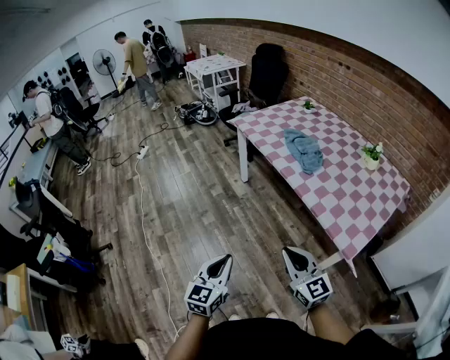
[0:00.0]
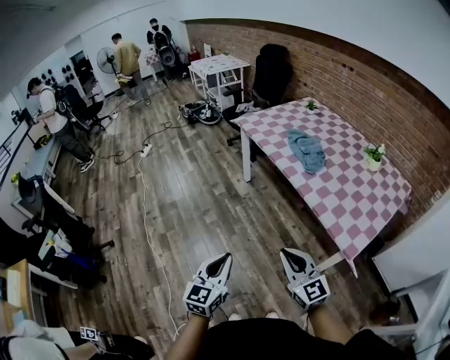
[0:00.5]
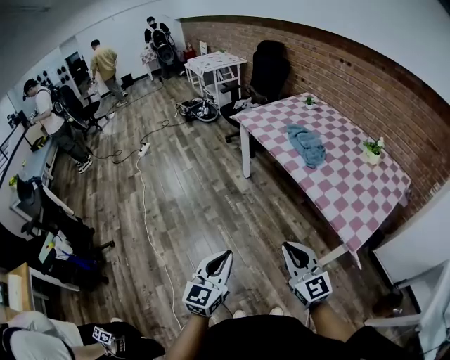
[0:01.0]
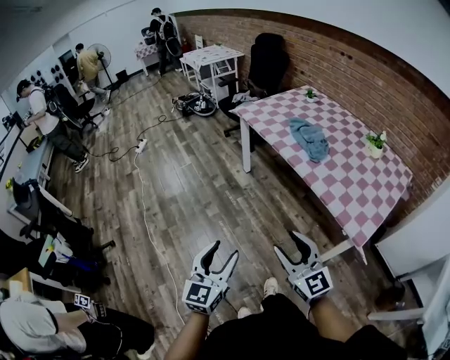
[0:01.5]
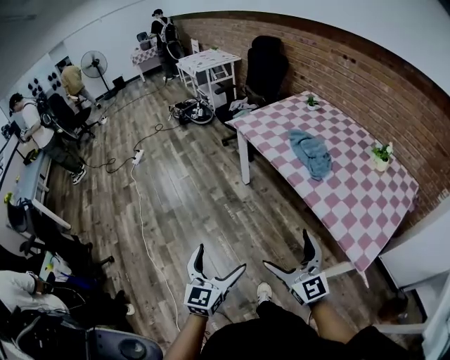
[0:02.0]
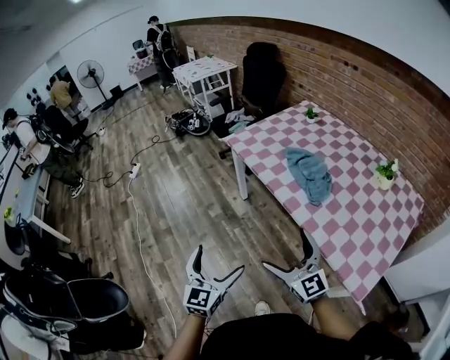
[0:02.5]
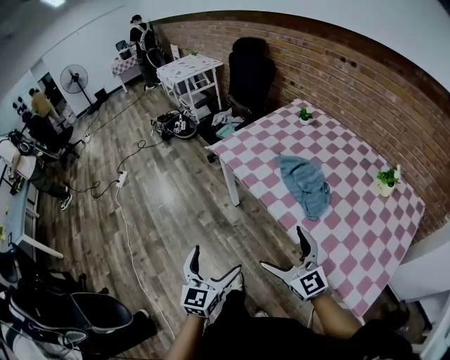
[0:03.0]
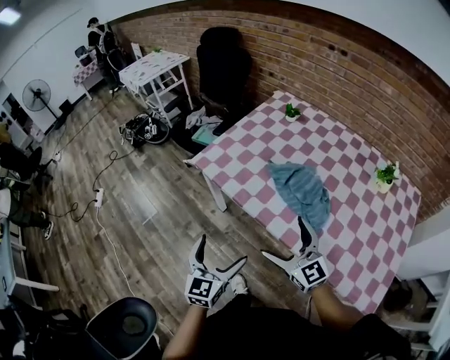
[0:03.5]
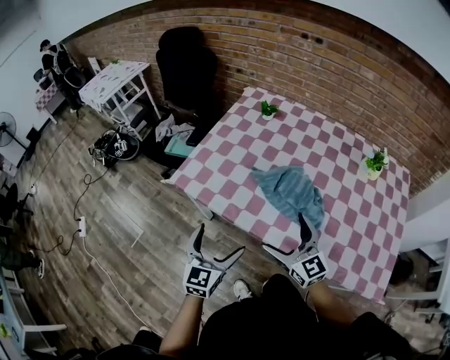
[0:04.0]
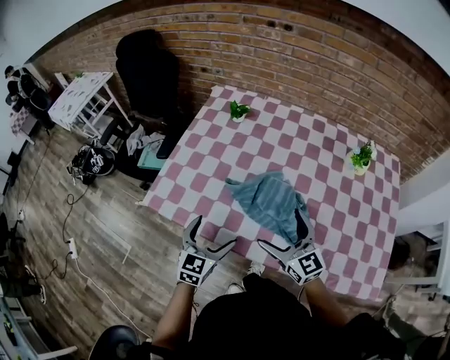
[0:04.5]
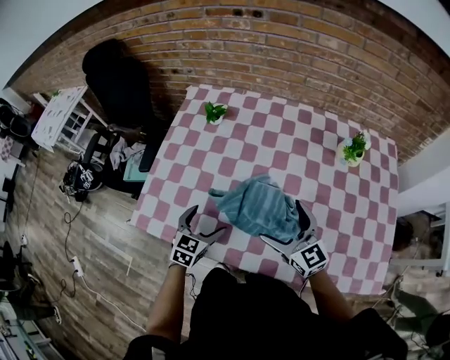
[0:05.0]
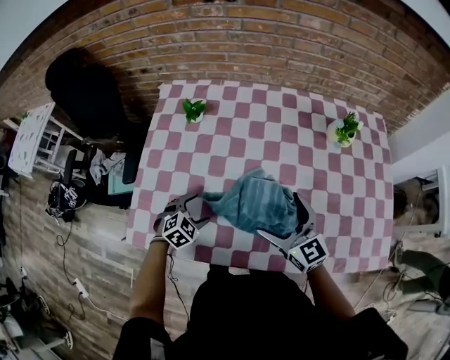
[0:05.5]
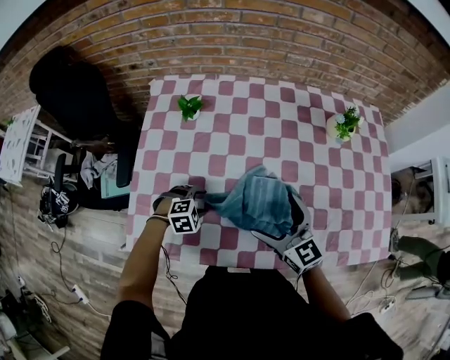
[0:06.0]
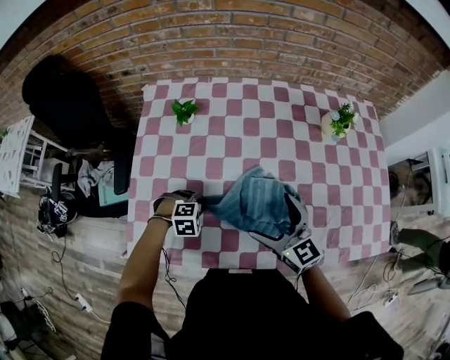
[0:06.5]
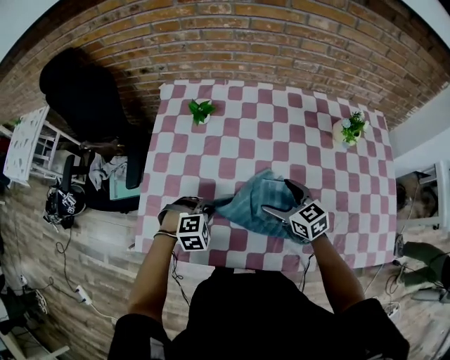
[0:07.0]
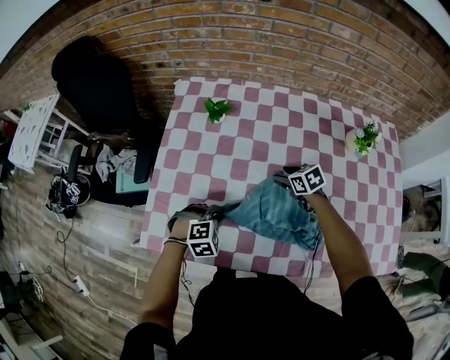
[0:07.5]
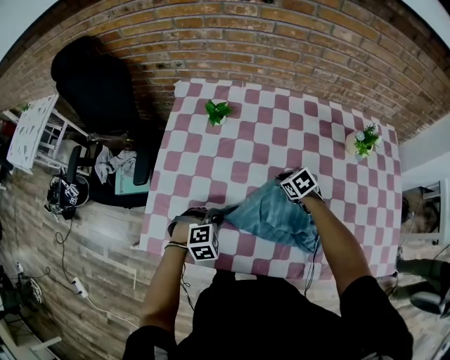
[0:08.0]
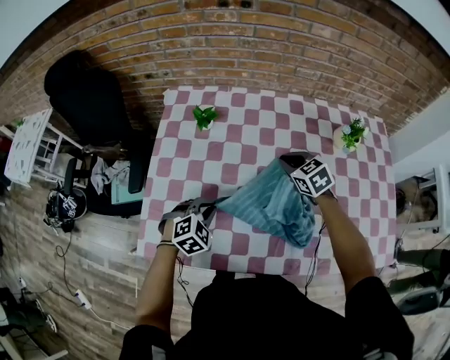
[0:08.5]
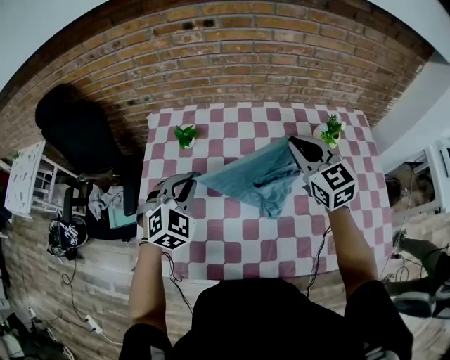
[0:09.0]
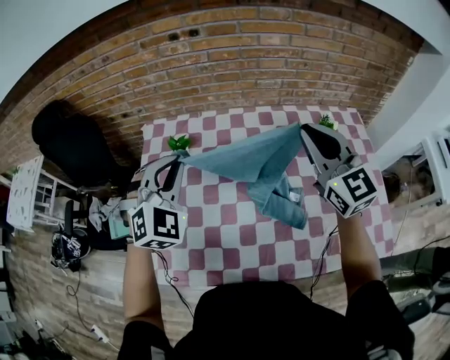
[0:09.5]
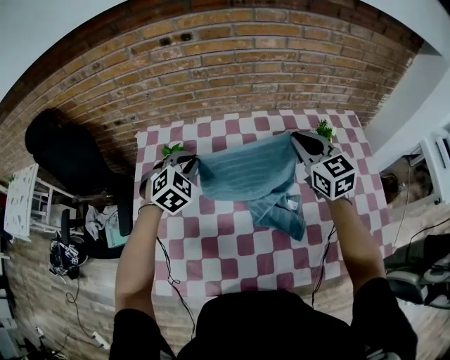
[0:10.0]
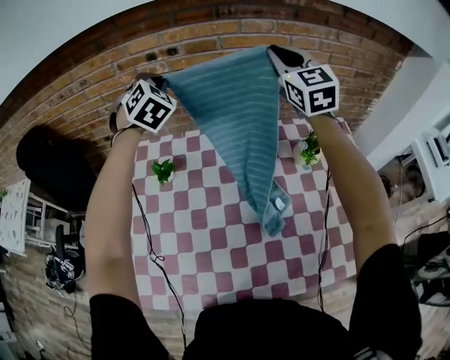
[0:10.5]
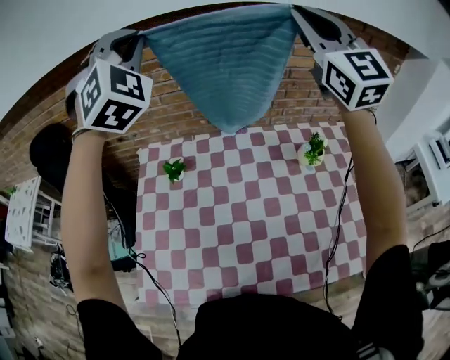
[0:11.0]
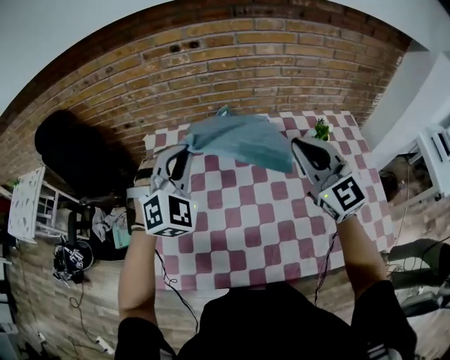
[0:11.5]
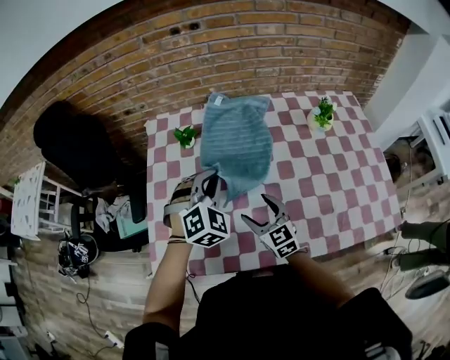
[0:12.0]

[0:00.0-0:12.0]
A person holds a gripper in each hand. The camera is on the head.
0:00.0 to 0:02.0: The grippers both shift forward by some 10 cm. The right gripper opens up. Meanwhile the left gripper opens up.
0:02.0 to 0:04.0: Both grippers are carried approximately 50 cm. The left gripper rotates about 30 degrees, while the right gripper swivels approximately 30 degrees.
0:04.0 to 0:06.0: The left gripper shifts by roughly 40 cm, tips its fingers downward by approximately 60 degrees, and closes. The right gripper ends up roughly 20 cm from where it was, and turns by approximately 20 degrees.
0:06.0 to 0:08.0: The right gripper heads downward and forward, covering about 25 cm, angles its fingers downward, by some 50 degrees, and closes its fingers; the left gripper closes its fingers.
0:08.0 to 0:10.0: The right gripper heads upward and to the right, covering some 35 cm, and tips its fingers upward by roughly 50 degrees, while the left gripper is displaced forward and upward by roughly 35 cm, and swivels some 20 degrees.
0:10.0 to 0:12.0: The right gripper shifts about 30 cm to the left and backward, reaches some 35 cm upward, then returns, and opens up, while the left gripper shifts approximately 15 cm backward, and travels upward and back again, approximately 40 cm each way.

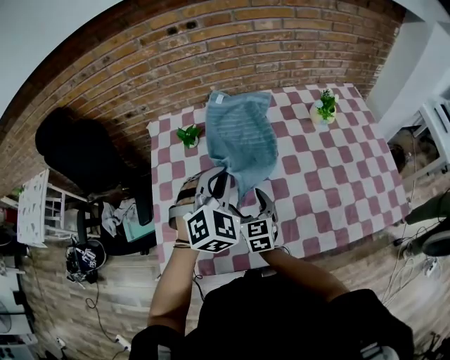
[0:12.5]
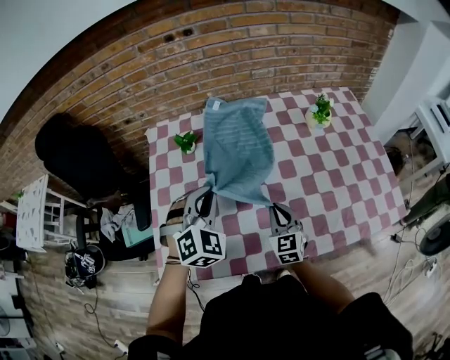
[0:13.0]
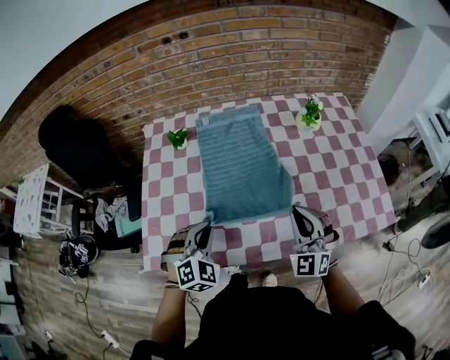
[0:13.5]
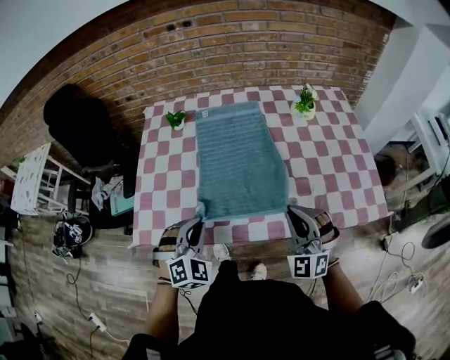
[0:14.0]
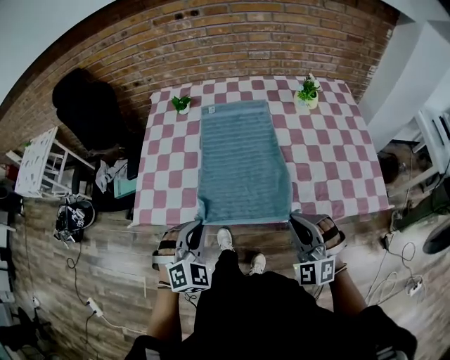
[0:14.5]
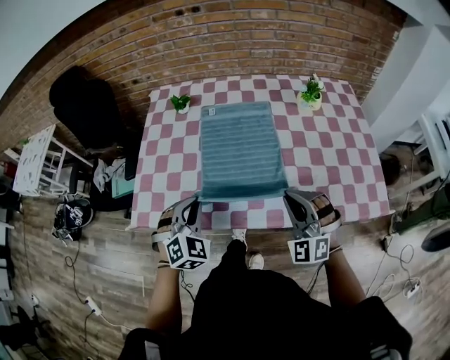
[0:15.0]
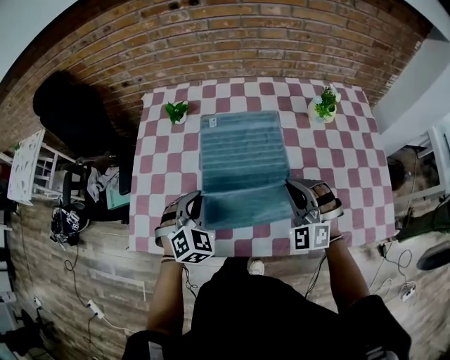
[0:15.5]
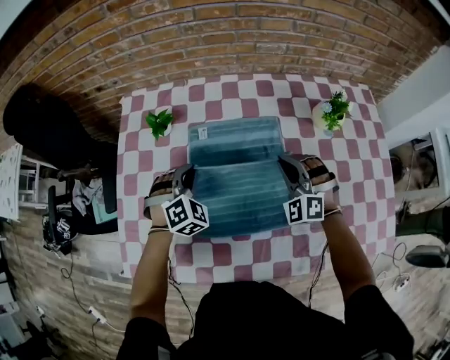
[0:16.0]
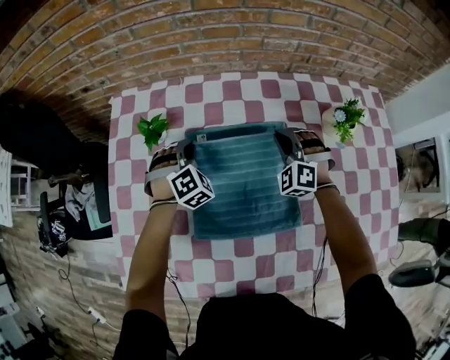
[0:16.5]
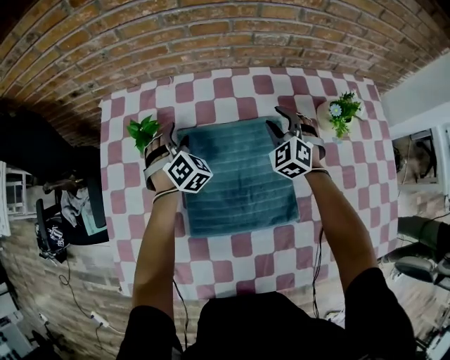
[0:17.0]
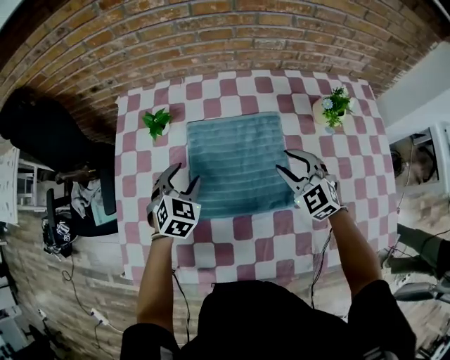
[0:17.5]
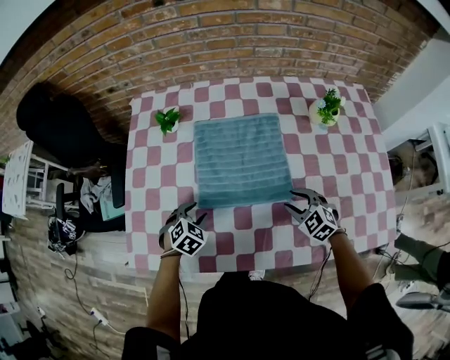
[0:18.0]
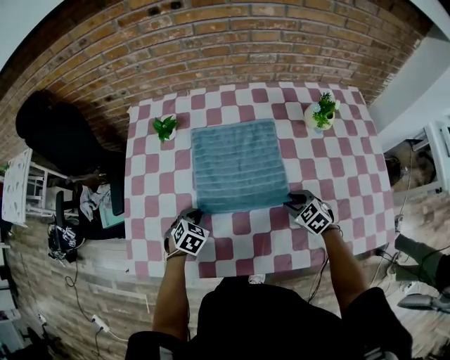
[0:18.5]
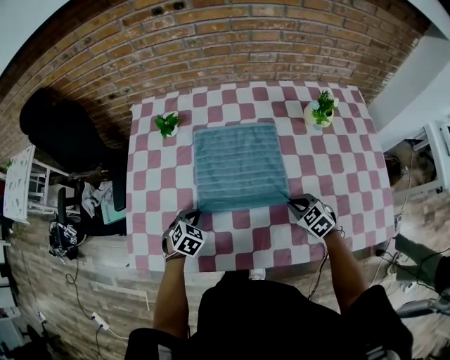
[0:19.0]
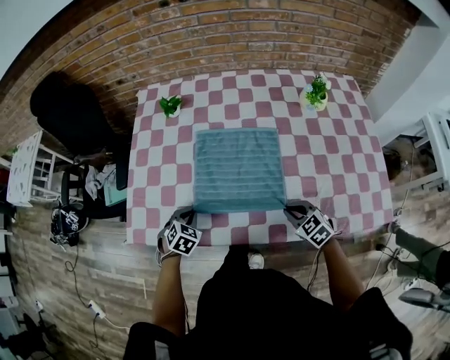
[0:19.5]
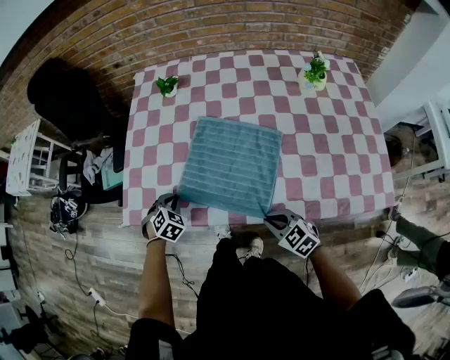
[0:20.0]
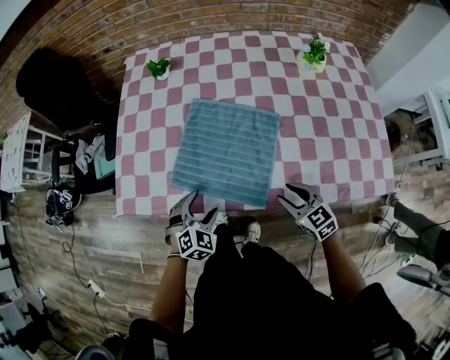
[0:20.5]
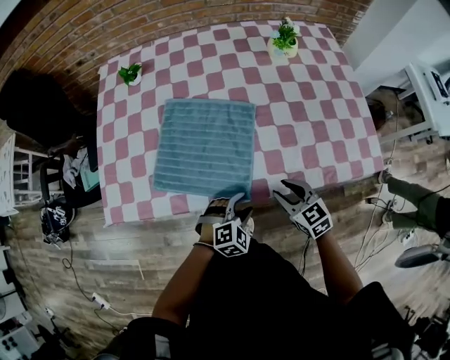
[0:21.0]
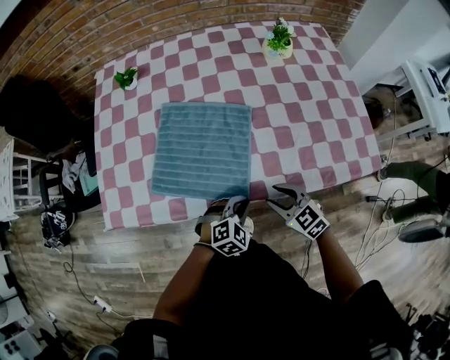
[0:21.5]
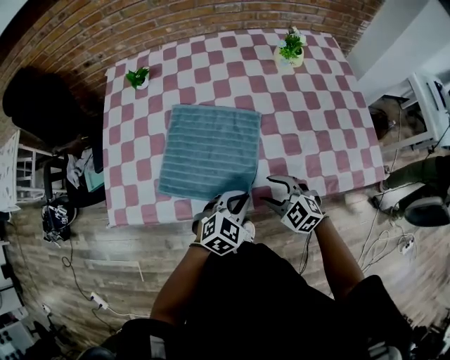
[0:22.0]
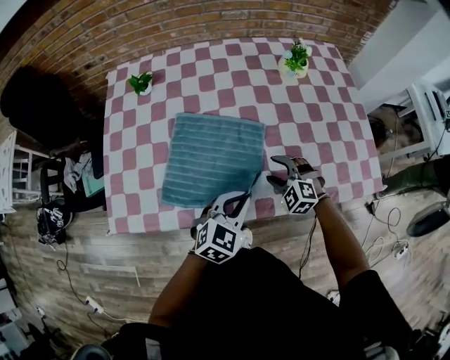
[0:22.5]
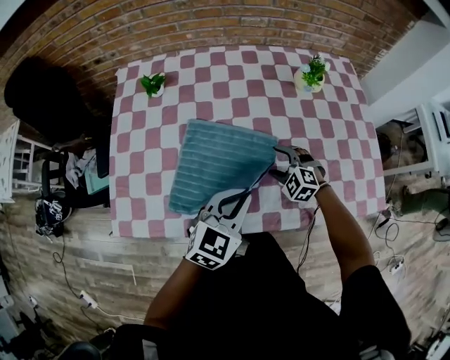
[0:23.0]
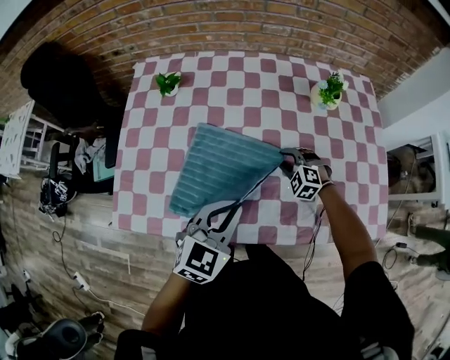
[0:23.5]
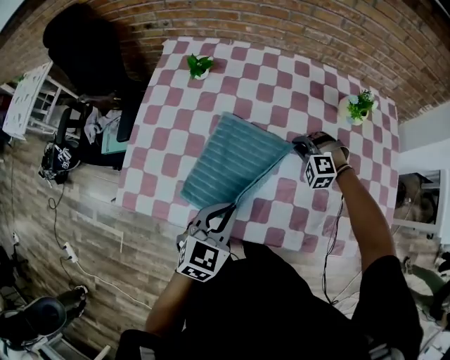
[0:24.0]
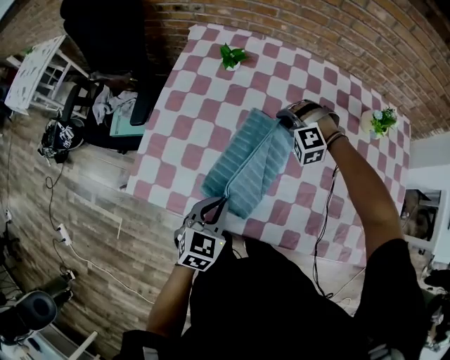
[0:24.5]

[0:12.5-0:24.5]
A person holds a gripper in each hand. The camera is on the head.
0:12.5 to 0:14.5: The left gripper is displaced backward by some 30 cm, while the right gripper shifts approximately 40 cm backward, to the right and upward, rolls counterclockwise, seen from behind, by some 60 degrees, and closes.
0:14.5 to 0:16.5: Both grippers are carried forward, roughly 60 cm.
0:16.5 to 0:18.5: The grippers both shift backward by approximately 25 cm. The right gripper rolls clockwise, seen from behind, by about 40 degrees, while the left gripper changes its angle by about 40 degrees, and opens, then closes once more.
0:18.5 to 0:20.5: The left gripper travels backward by approximately 20 cm, swivels about 20 degrees, and opens up, while the right gripper shifts about 20 cm backward and to the left, and changes its angle by about 20 degrees.
0:20.5 to 0:22.5: The right gripper goes approximately 10 cm forward, and twists about 40 degrees counterclockwise, seen from behind. Meanwhile the left gripper moves to the right and upward, approximately 20 cm, swivels some 30 degrees, and closes.
0:22.5 to 0:24.5: The right gripper shifts approximately 30 cm forward and to the left, rolls counterclockwise, seen from behind, by roughly 50 degrees, and closes its fingers. Meanwhile the left gripper heads to the left, covering some 20 cm, and swivels some 40 degrees.

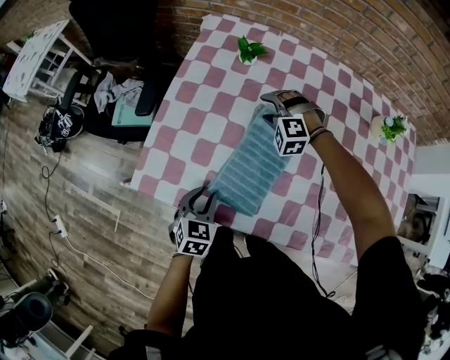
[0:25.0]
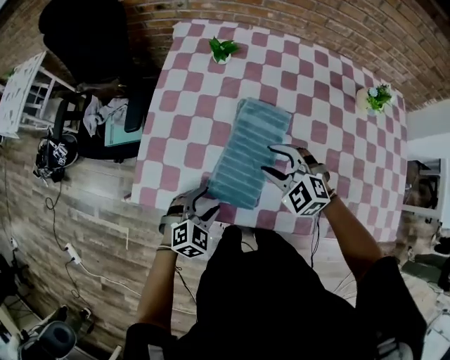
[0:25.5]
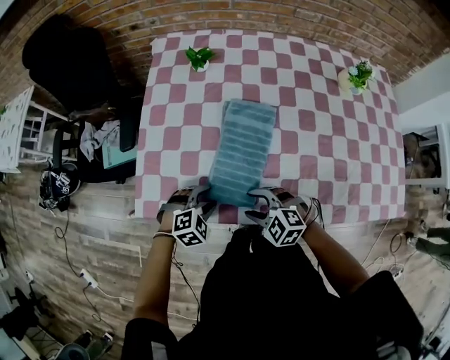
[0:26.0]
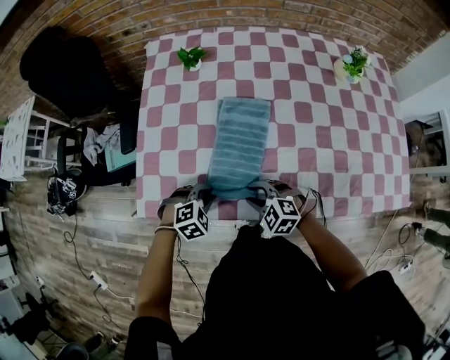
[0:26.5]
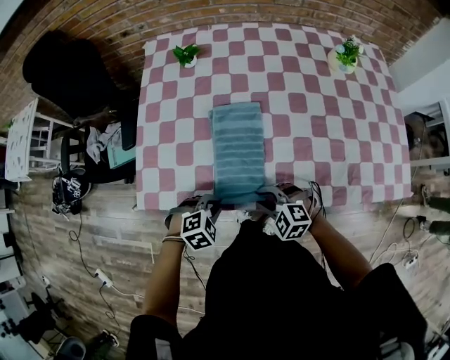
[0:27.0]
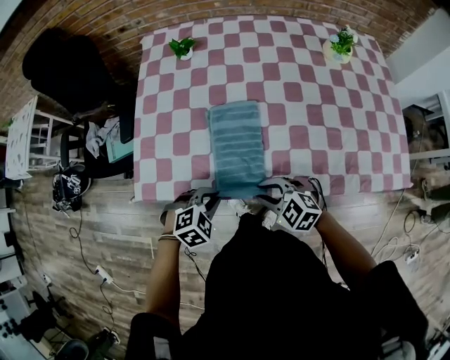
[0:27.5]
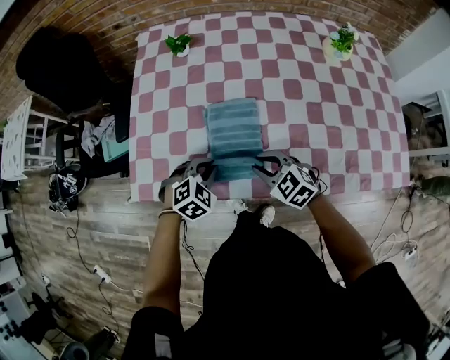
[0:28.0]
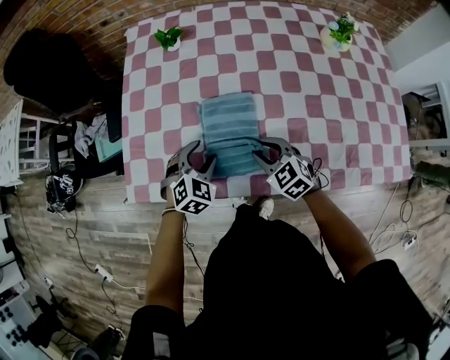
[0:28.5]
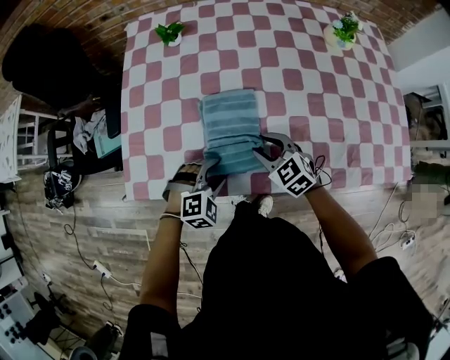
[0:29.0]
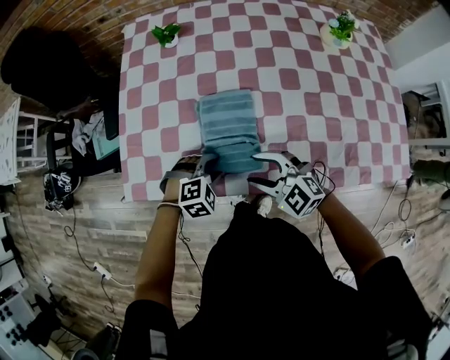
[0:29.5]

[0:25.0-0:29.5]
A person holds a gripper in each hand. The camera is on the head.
0:25.0 to 0:27.0: The right gripper moves backward, about 35 cm, and twists approximately 40 degrees clockwise, seen from behind, while the left gripper moves backward and to the right, approximately 10 cm, and twists about 50 degrees clockwise, seen from behind.
0:27.0 to 0:29.5: The right gripper is displaced upward by about 5 cm, and goes forward and returns, some 10 cm each way; the left gripper moves forward, some 5 cm.
